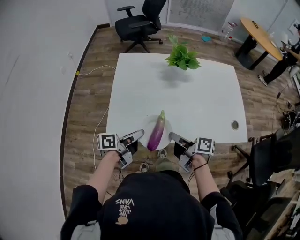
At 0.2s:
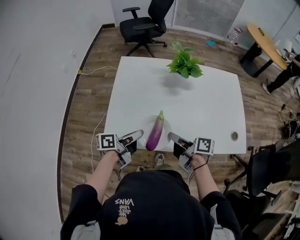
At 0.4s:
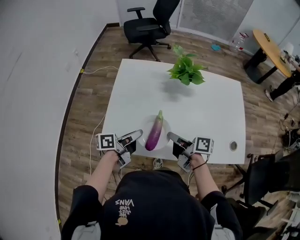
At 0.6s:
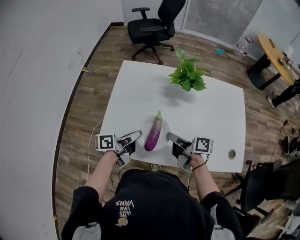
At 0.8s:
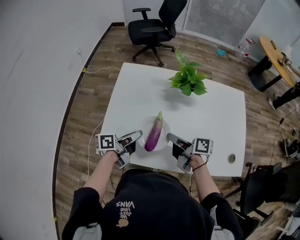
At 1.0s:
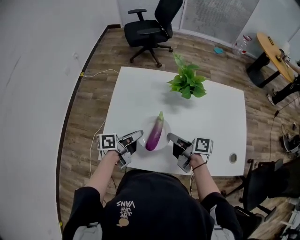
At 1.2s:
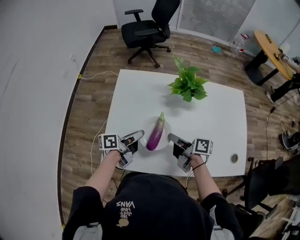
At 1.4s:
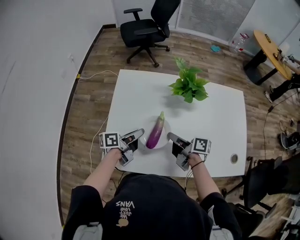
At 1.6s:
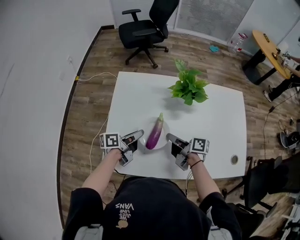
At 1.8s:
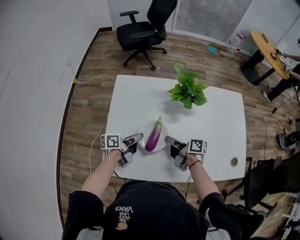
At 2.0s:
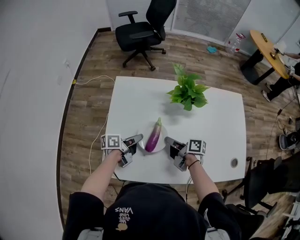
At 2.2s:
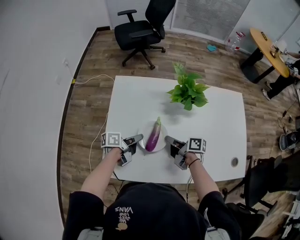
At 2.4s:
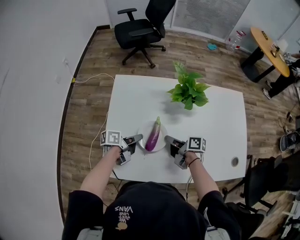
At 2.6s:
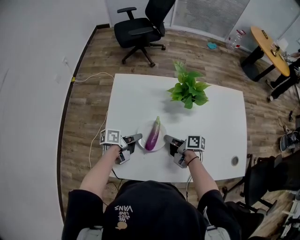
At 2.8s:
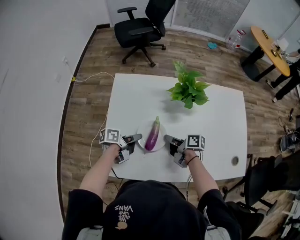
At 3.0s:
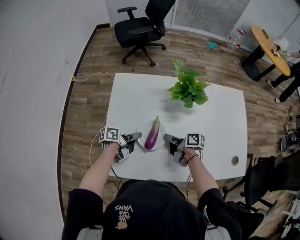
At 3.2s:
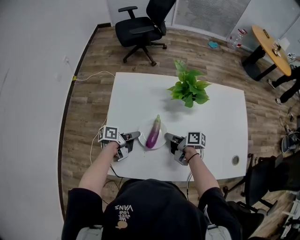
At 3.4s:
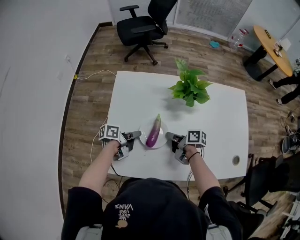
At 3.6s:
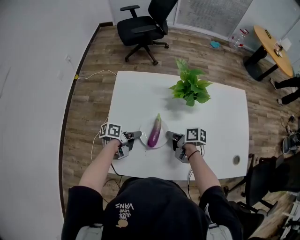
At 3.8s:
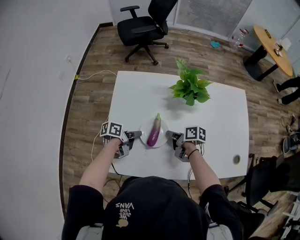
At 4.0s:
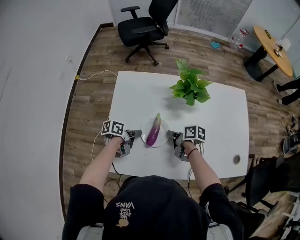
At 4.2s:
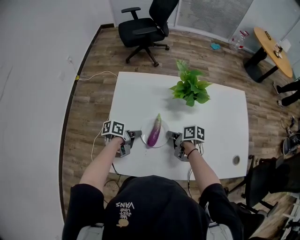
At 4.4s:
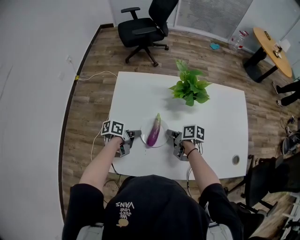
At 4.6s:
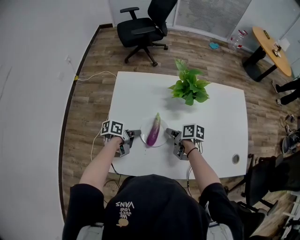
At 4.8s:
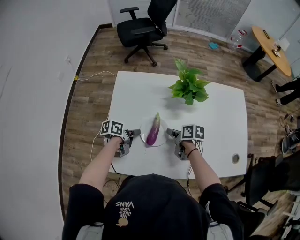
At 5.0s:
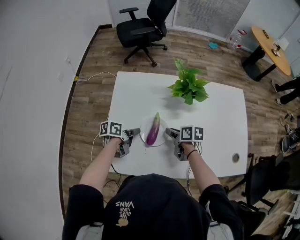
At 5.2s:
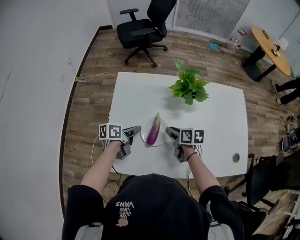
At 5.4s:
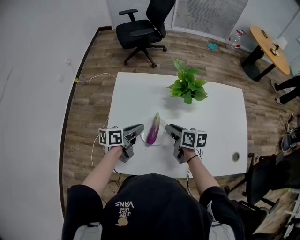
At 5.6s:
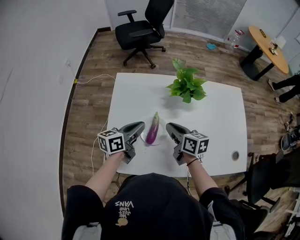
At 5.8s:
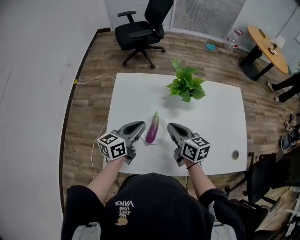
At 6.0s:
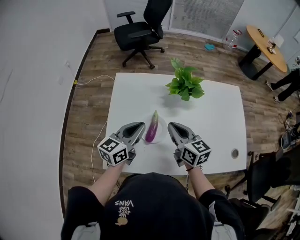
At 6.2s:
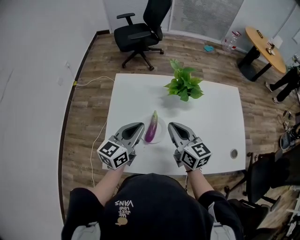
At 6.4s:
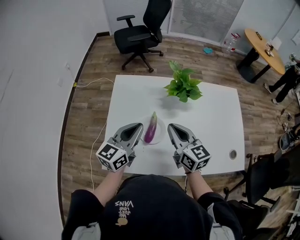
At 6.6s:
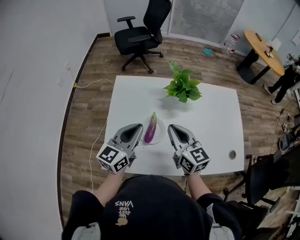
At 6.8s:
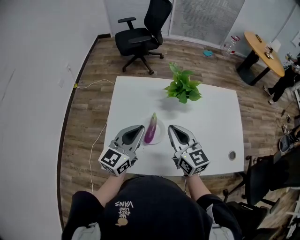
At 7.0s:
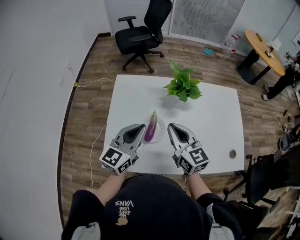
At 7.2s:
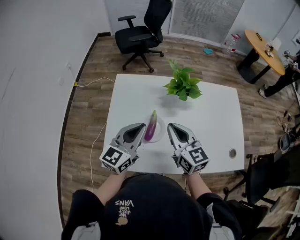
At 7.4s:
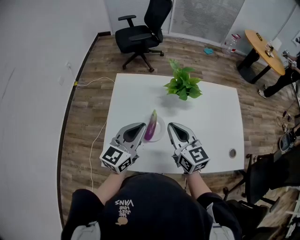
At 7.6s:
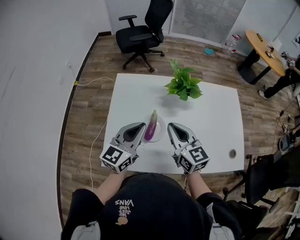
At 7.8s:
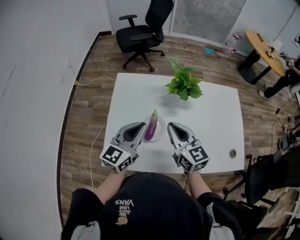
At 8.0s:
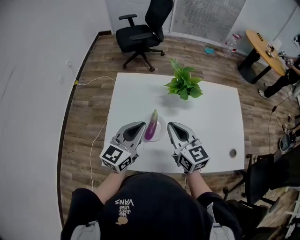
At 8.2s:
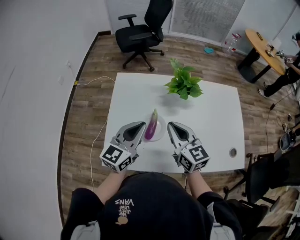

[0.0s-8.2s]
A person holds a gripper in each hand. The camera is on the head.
0.0s to 1.6s: Both grippers move forward, roughly 20 cm.
1.6s to 3.2s: The grippers both shift downward by some 5 cm.
3.2s to 5.0s: The right gripper swivels about 30 degrees.
5.0s to 6.6s: The two grippers go some 20 cm upward. The left gripper rotates around the line of its fingers by roughly 50 degrees, clockwise from behind; the right gripper angles its fingers upward, by roughly 30 degrees, and closes.
6.6s to 8.2s: The grippers make only small movements.

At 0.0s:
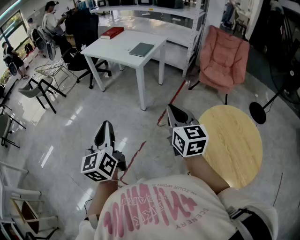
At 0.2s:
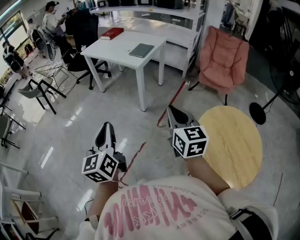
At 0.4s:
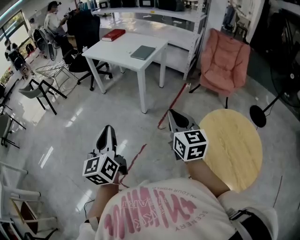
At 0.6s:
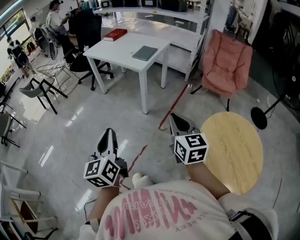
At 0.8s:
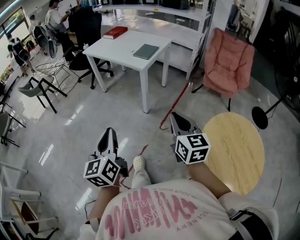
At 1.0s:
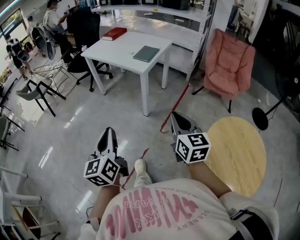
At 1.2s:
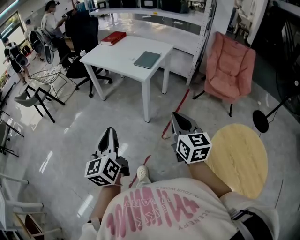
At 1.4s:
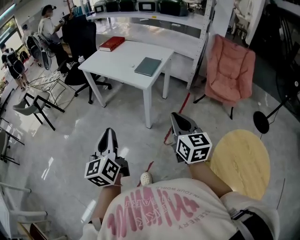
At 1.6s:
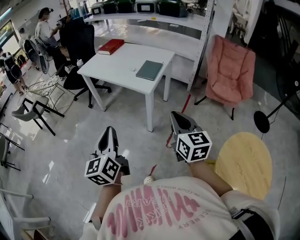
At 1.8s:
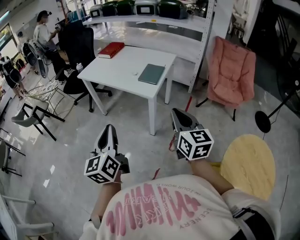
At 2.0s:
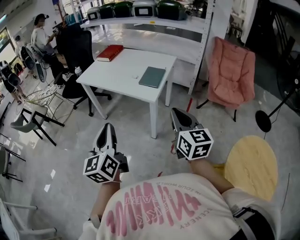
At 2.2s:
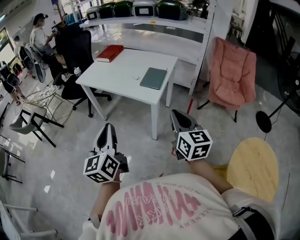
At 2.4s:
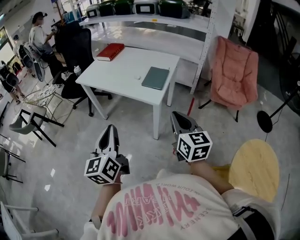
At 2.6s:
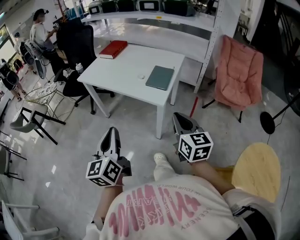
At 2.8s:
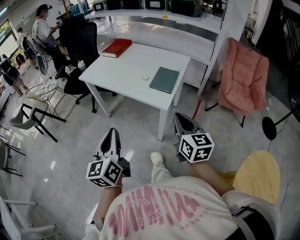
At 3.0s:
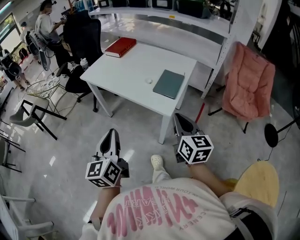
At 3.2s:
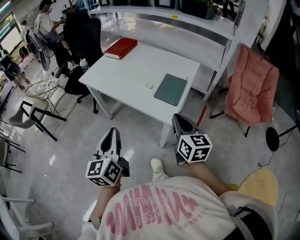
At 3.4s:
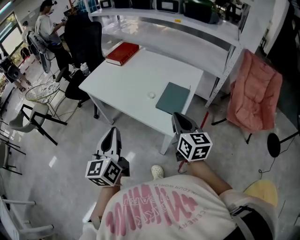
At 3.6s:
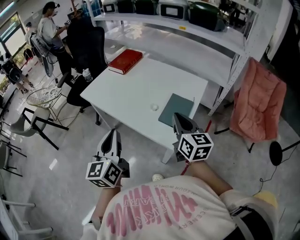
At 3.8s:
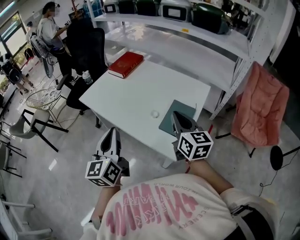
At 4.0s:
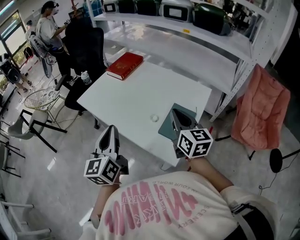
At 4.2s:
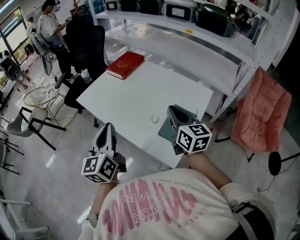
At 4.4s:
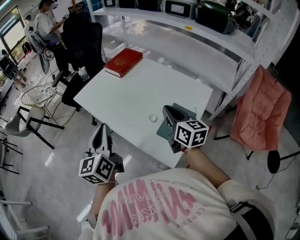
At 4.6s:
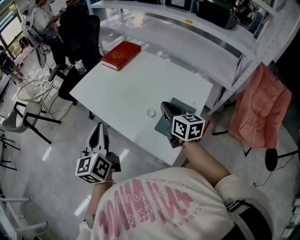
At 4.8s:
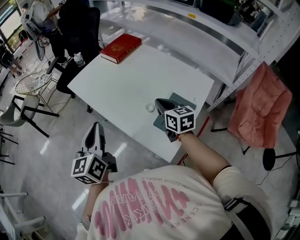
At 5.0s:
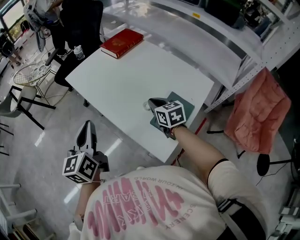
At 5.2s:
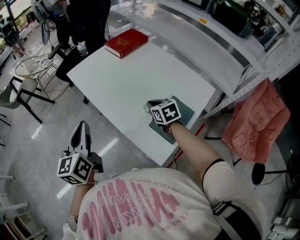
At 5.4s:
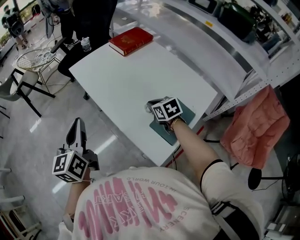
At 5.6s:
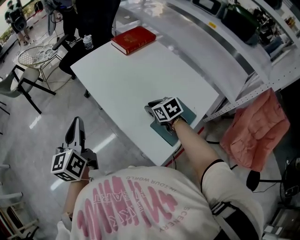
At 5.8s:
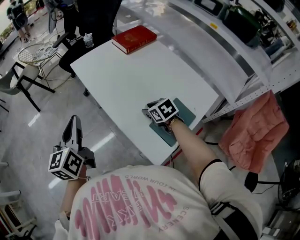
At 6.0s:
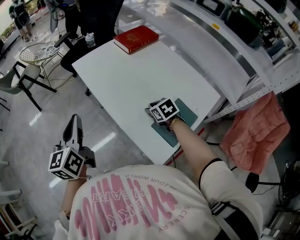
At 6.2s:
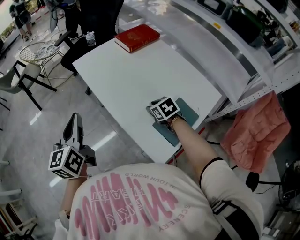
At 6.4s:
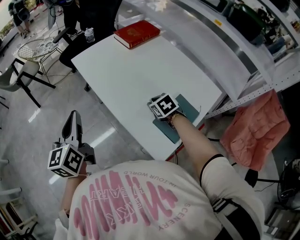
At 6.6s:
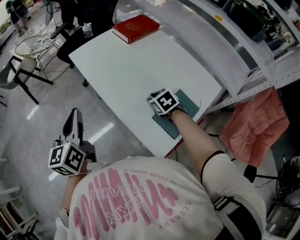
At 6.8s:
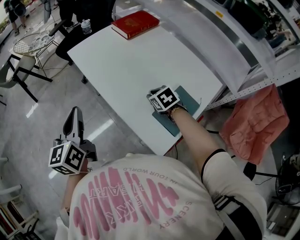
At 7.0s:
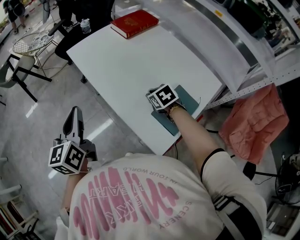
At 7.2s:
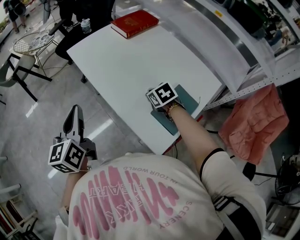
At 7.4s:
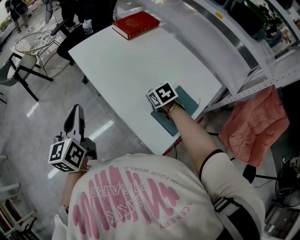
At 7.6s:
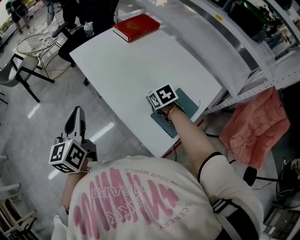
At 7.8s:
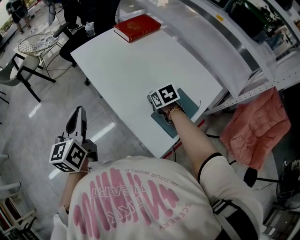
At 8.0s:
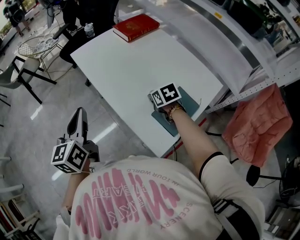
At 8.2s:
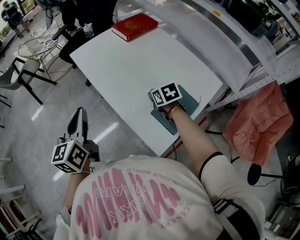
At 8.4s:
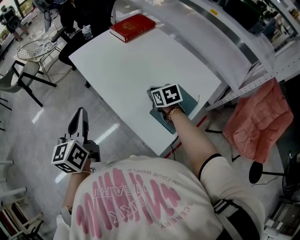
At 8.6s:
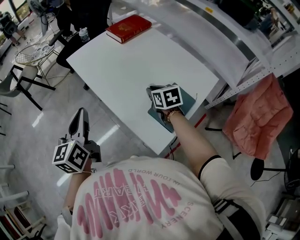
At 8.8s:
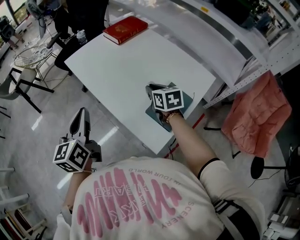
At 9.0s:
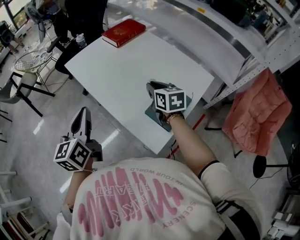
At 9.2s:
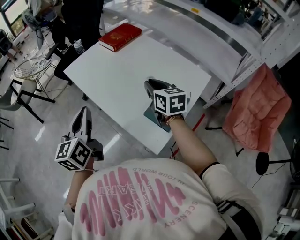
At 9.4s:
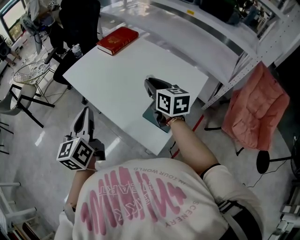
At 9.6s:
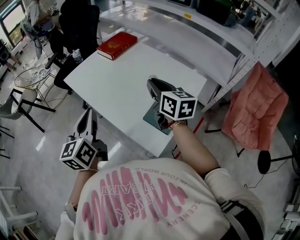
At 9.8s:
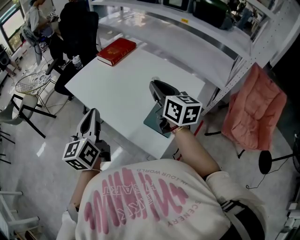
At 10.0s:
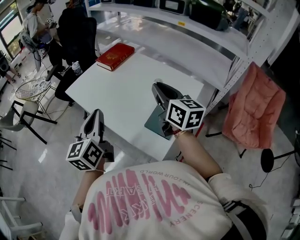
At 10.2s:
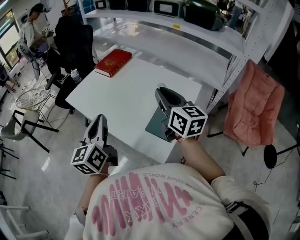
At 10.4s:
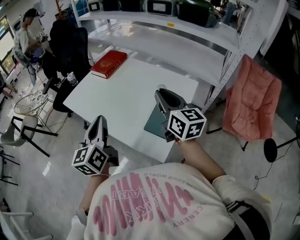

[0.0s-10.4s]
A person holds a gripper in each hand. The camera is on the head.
0.0s to 1.4s: Both grippers travel together forward, about 25 cm.
1.4s to 3.0s: The two grippers go approximately 30 cm forward.
3.0s to 4.4s: The grippers both shift forward by about 35 cm.
4.4s to 6.0s: The left gripper goes approximately 10 cm to the left. Meanwhile the right gripper heads downward and forward, covering approximately 20 cm, angles its fingers downward, by roughly 50 degrees, and opens up.
6.0s to 7.4s: The grippers stay close to where they were, moving slightly.
7.4s to 9.0s: The left gripper heads to the right, covering approximately 5 cm. The right gripper goes roughly 10 cm upward, and tilts its fingers approximately 30 degrees upward.
9.0s to 10.4s: The left gripper moves to the right and upward, some 10 cm; the right gripper goes some 20 cm upward and backward, and changes its angle by some 30 degrees.

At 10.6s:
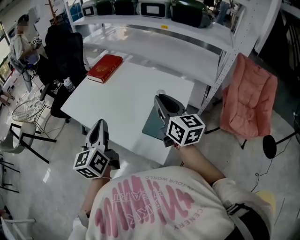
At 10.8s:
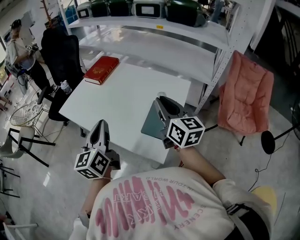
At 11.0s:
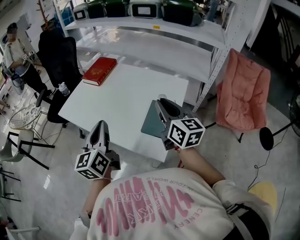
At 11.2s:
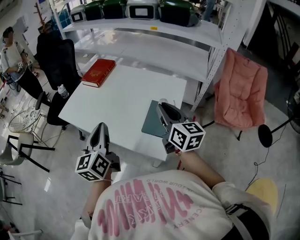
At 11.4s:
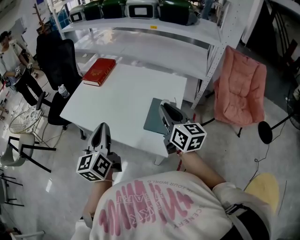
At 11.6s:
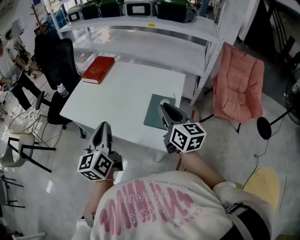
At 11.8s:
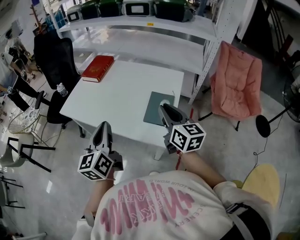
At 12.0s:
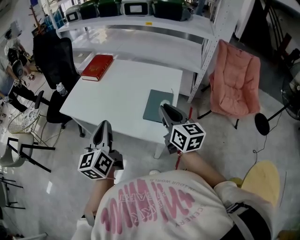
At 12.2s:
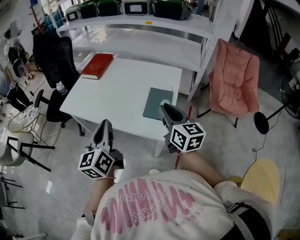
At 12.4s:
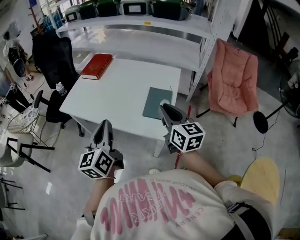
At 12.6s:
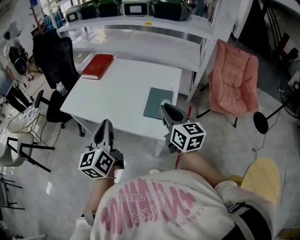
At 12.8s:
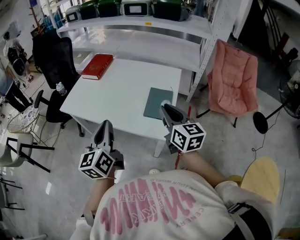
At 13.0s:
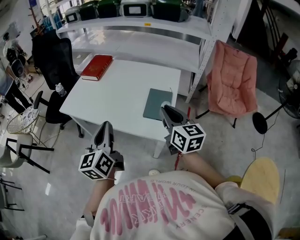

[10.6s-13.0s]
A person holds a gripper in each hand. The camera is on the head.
10.6s to 11.8s: The right gripper goes approximately 10 cm backward. Meanwhile the left gripper goes approximately 5 cm backward.
11.8s to 13.0s: The grippers stay close to where they were, moving slightly.

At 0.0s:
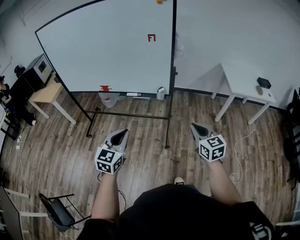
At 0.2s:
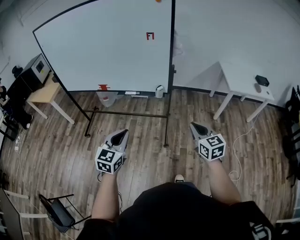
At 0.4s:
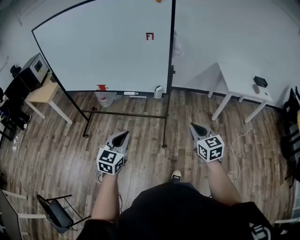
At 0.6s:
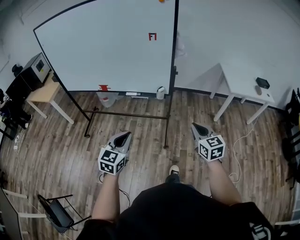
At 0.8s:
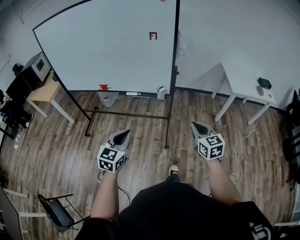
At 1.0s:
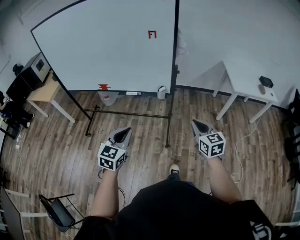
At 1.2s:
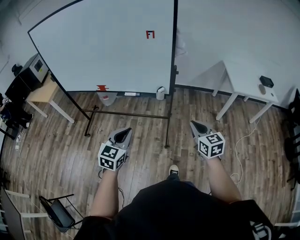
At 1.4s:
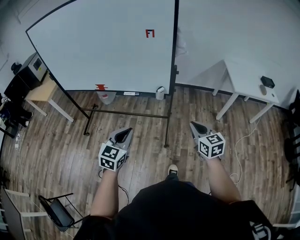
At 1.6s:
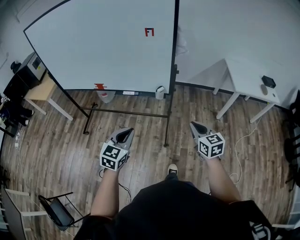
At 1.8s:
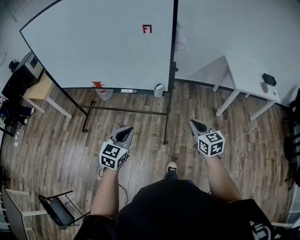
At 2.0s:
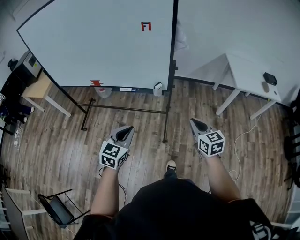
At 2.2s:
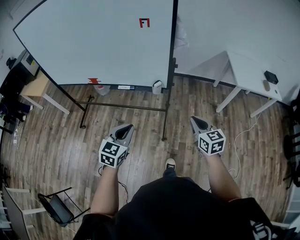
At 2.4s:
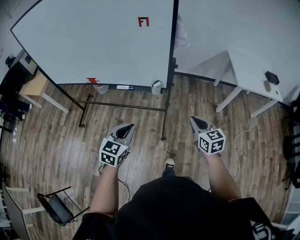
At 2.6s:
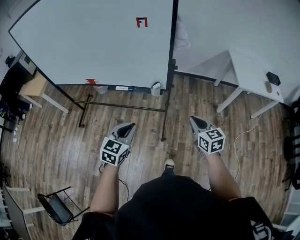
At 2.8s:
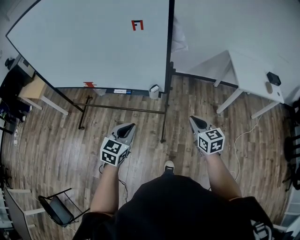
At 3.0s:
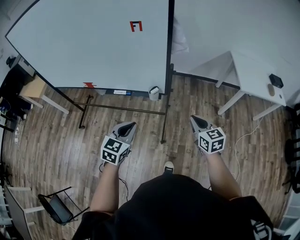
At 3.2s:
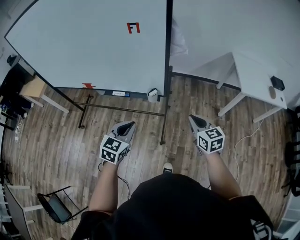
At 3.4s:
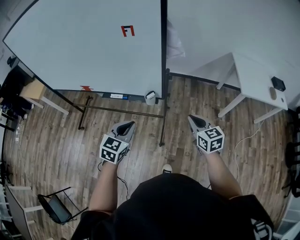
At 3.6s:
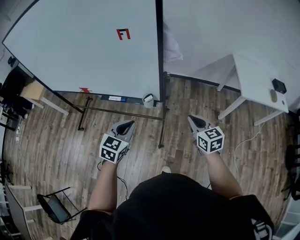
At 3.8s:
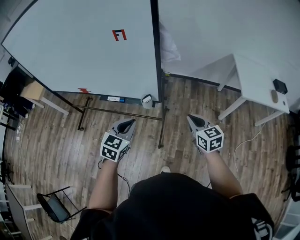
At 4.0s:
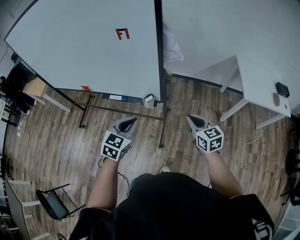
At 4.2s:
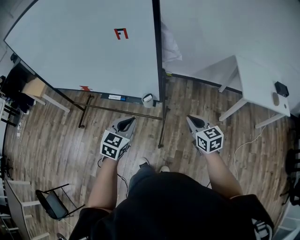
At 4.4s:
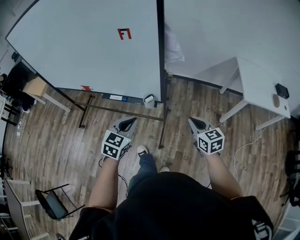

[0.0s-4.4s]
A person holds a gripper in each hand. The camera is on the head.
0.0s to 1.4s: The grippers both shift forward by approximately 10 cm.
1.4s to 3.0s: The left gripper moves forward and to the right, approximately 15 cm; the right gripper travels forward by approximately 15 cm.
3.0s to 4.4s: The right gripper heads forward, covering about 5 cm. Meanwhile the left gripper moves forward and to the right, roughly 10 cm.
